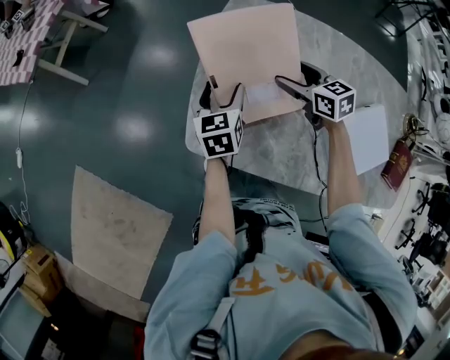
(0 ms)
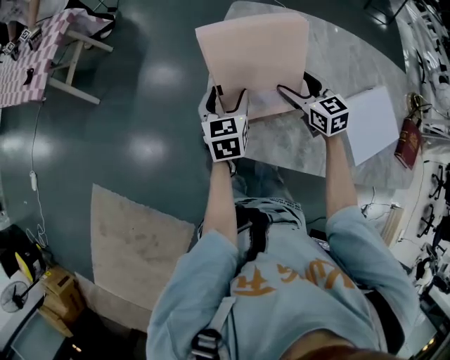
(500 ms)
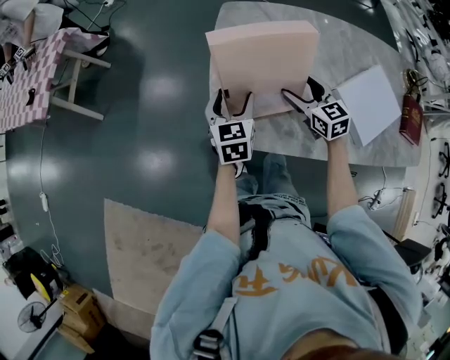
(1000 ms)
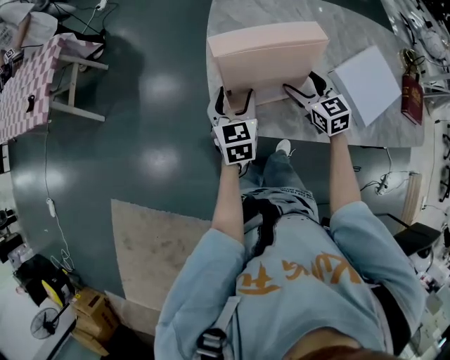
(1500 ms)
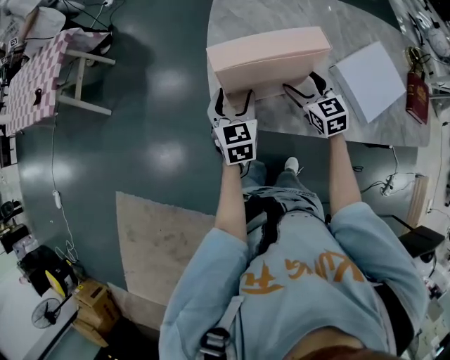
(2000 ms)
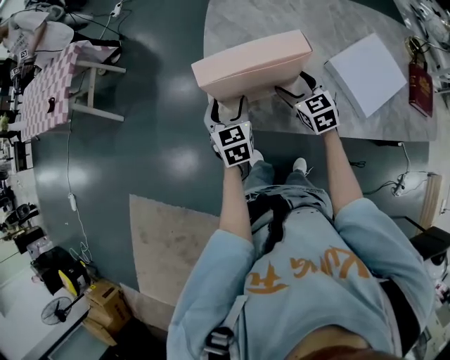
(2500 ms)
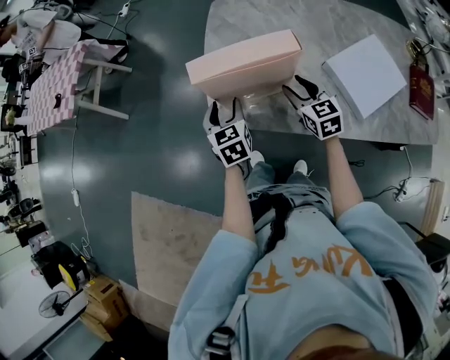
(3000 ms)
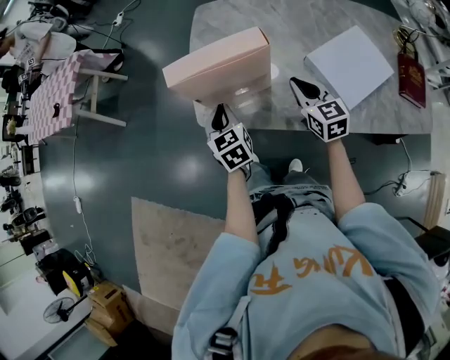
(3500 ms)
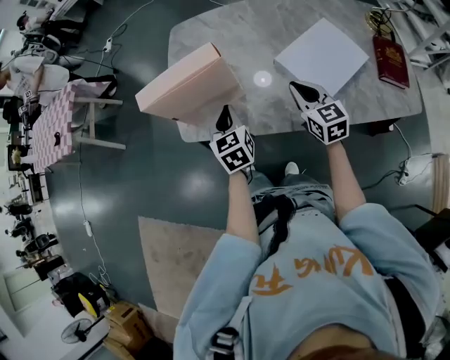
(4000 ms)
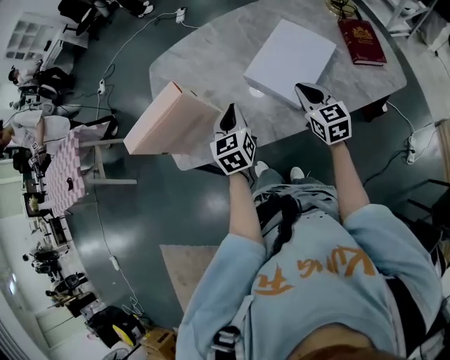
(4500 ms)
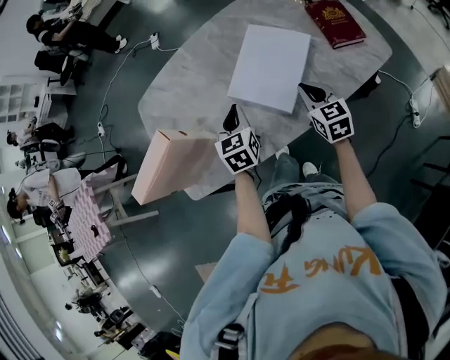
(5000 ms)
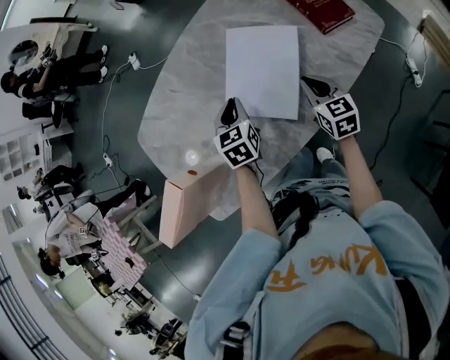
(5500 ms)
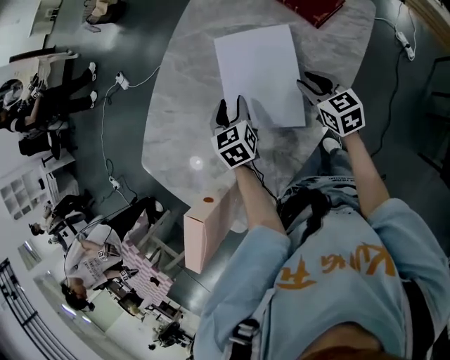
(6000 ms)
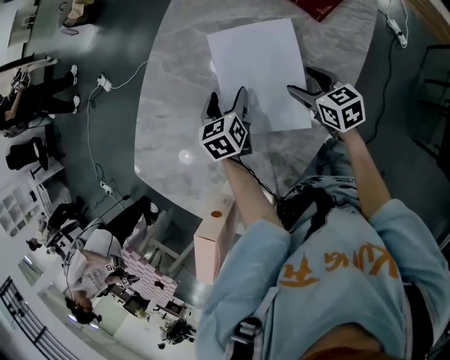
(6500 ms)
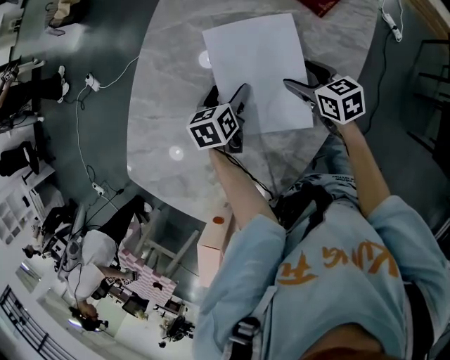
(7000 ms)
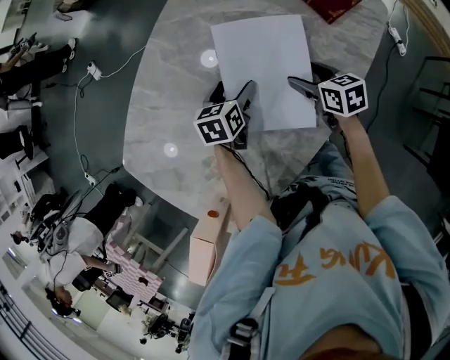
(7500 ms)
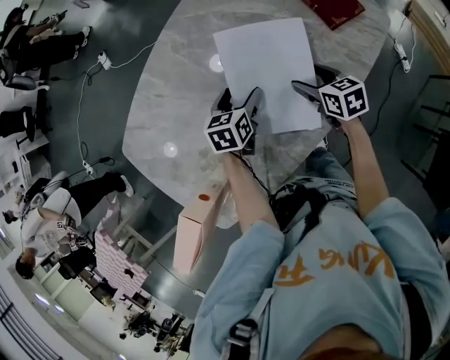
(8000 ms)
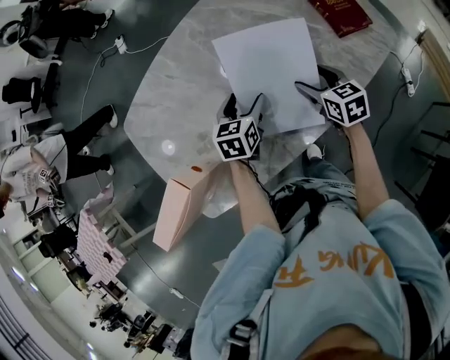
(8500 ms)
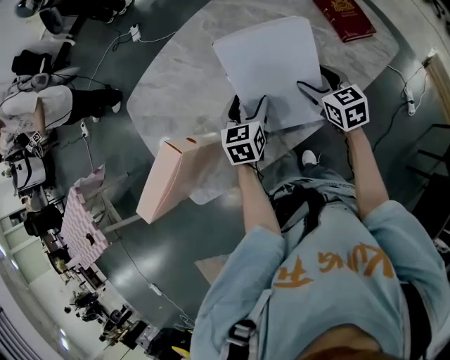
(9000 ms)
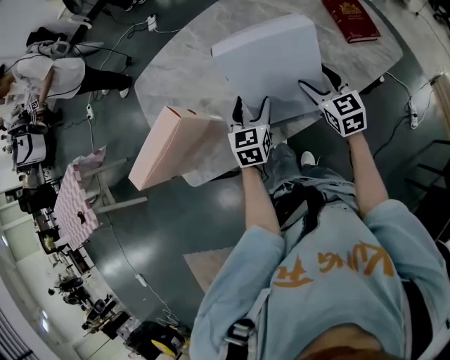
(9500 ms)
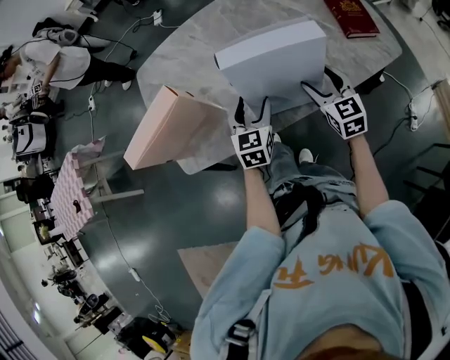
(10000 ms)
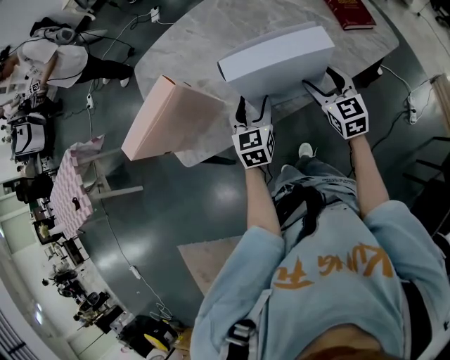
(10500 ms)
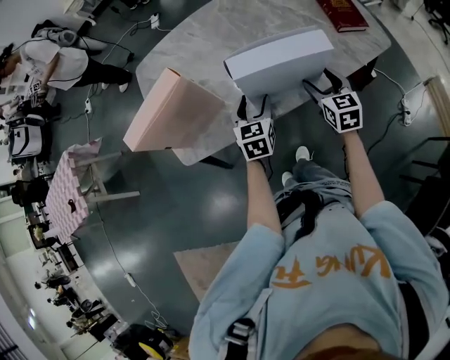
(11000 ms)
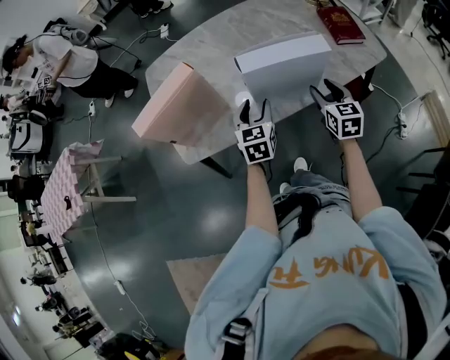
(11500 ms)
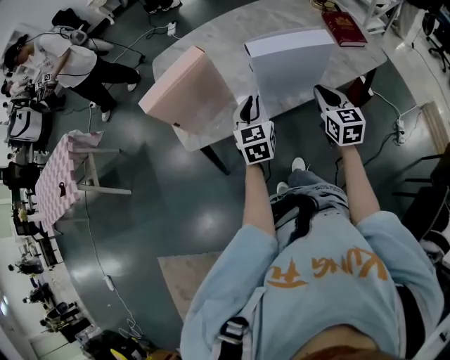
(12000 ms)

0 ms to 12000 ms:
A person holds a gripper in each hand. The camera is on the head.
0 ms to 2000 ms: Both grippers move backward, roughly 15 cm. The left gripper changes its angle by some 20 degrees. The right gripper swivels about 30 degrees.
2000 ms to 4000 ms: The grippers both shift to the right and backward by about 20 cm. The right gripper closes; the left gripper closes its fingers.
4000 ms to 6000 ms: The left gripper ends up approximately 40 cm from where it was, rotates roughly 50 degrees, and opens up; the right gripper moves about 30 cm, and swivels roughly 50 degrees.
6000 ms to 8000 ms: The right gripper opens its fingers. Meanwhile the left gripper opens up.
8000 ms to 10000 ms: The left gripper travels backward by about 20 cm, and swivels approximately 40 degrees. Meanwhile the right gripper moves backward and upward, roughly 15 cm, and swivels roughly 40 degrees.
10000 ms to 12000 ms: The left gripper heads backward and upward, covering some 15 cm, and closes its fingers. The right gripper heads backward, covering some 15 cm, and closes its fingers.

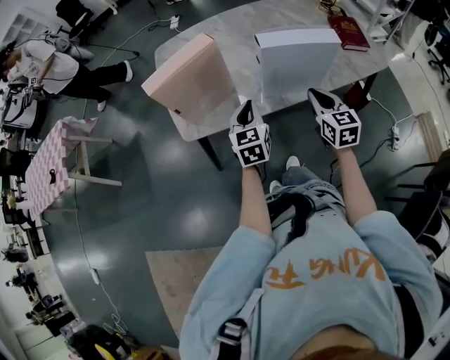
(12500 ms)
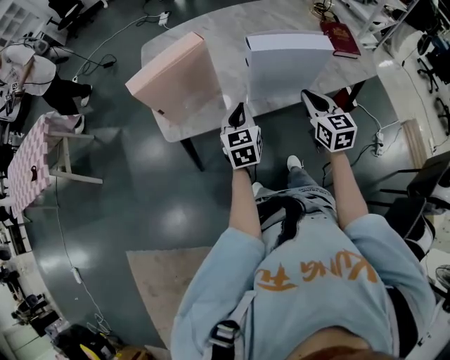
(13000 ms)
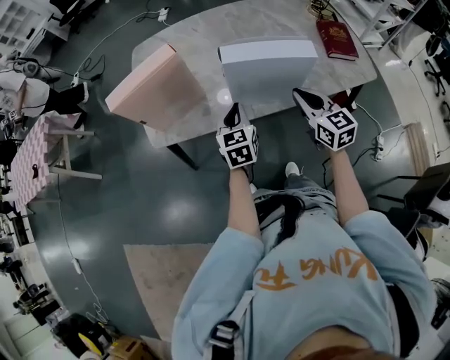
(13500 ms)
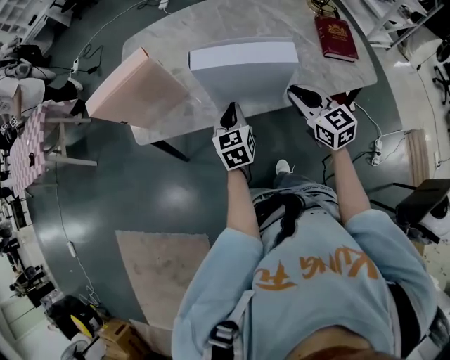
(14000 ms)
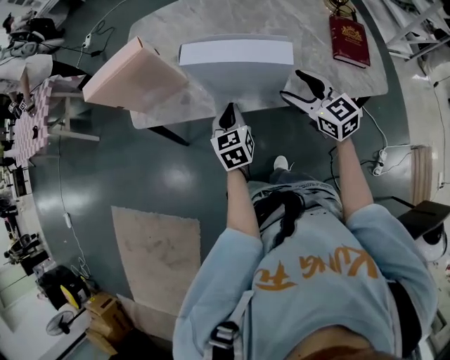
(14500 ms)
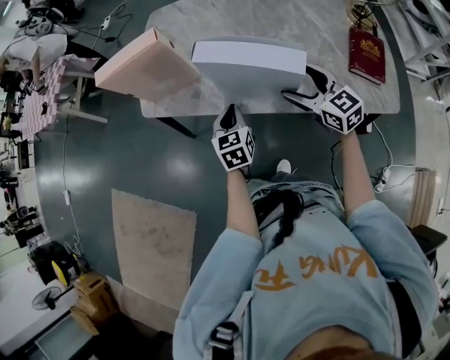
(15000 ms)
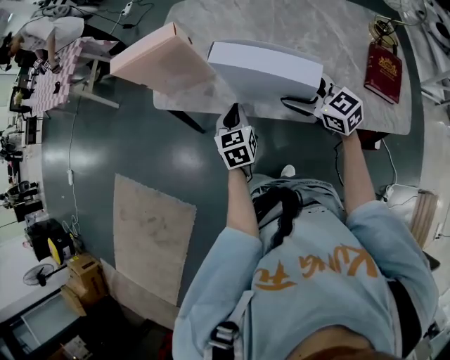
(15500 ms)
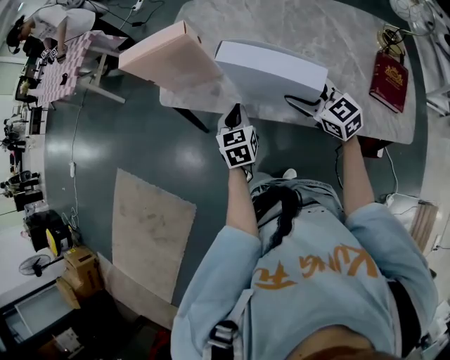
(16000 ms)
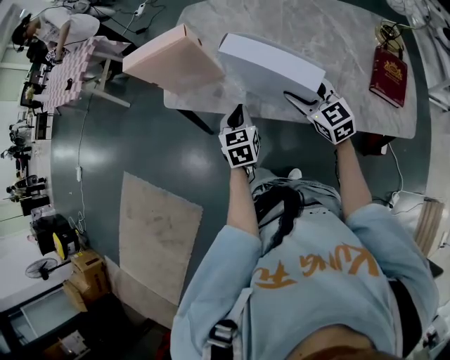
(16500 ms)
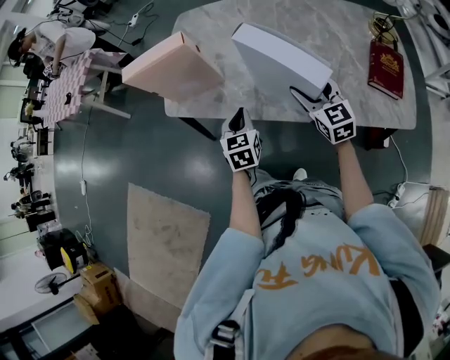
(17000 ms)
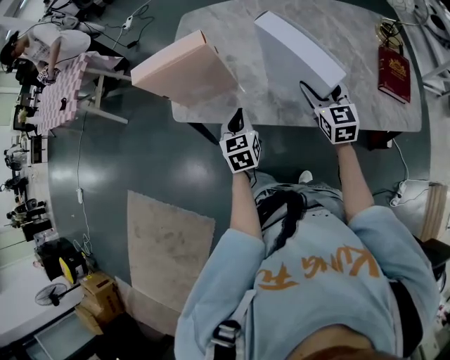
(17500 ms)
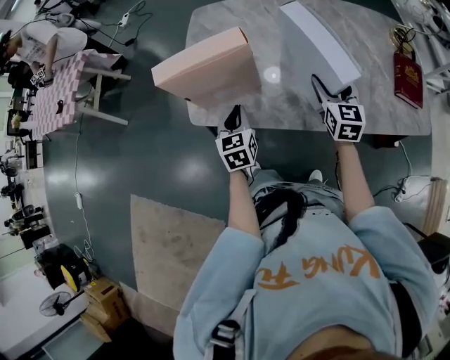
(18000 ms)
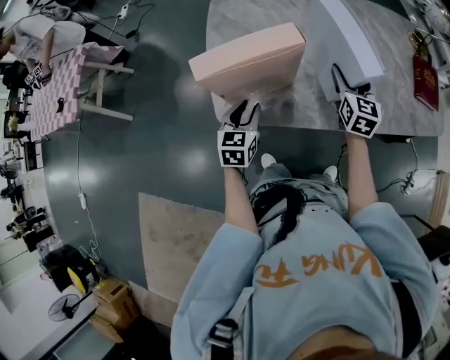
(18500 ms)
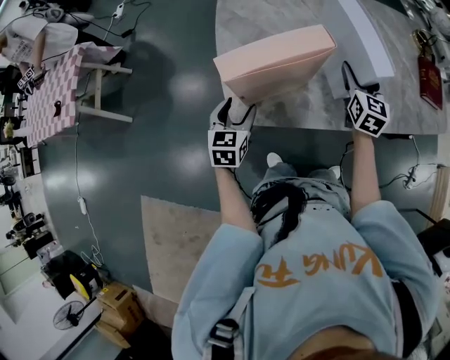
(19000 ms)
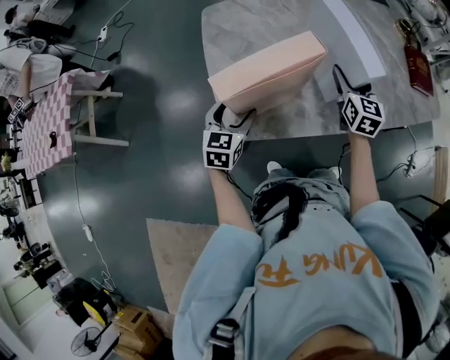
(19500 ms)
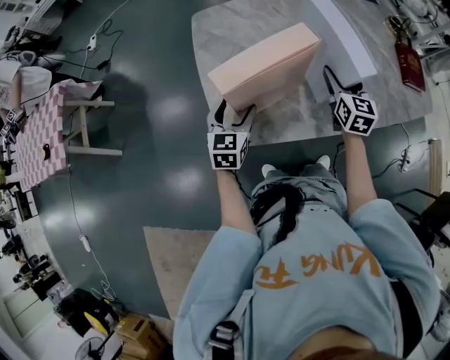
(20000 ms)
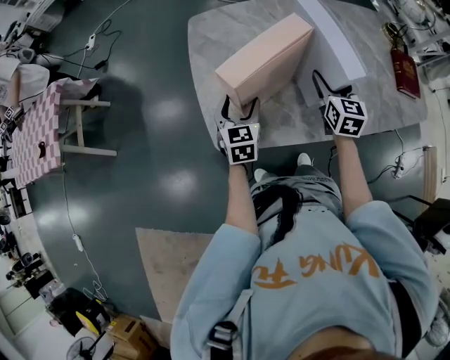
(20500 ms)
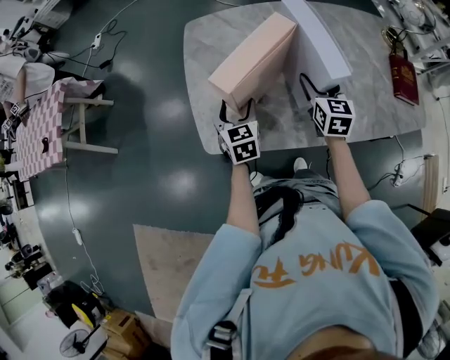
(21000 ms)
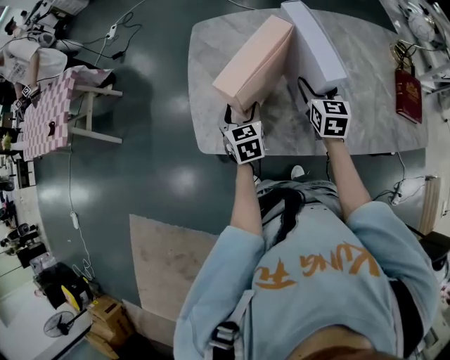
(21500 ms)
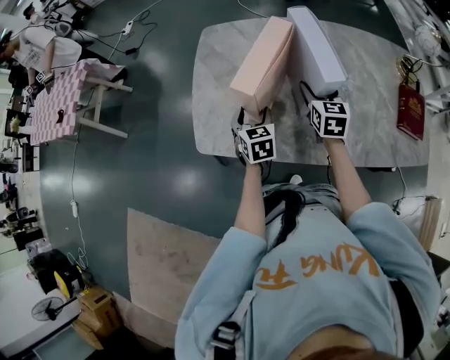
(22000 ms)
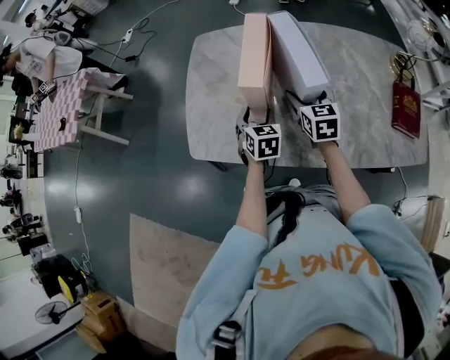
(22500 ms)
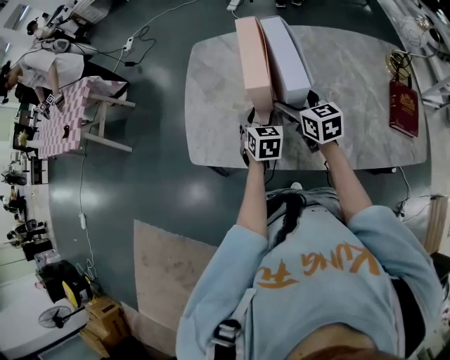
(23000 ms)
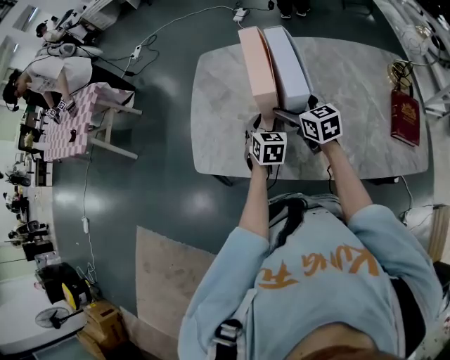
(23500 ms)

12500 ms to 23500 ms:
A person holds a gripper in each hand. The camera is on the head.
12500 ms to 14500 ms: The left gripper changes place by approximately 15 cm, and swivels about 20 degrees, while the right gripper moves roughly 15 cm, rotates roughly 40 degrees, and opens up.
14500 ms to 16000 ms: The right gripper travels forward by roughly 5 cm, and rotates some 20 degrees; the left gripper shifts by roughly 5 cm.
16000 ms to 18000 ms: The right gripper changes place by some 10 cm, and turns by approximately 50 degrees. Meanwhile the left gripper changes place by about 20 cm.
18000 ms to 20000 ms: The left gripper travels to the left and forward by roughly 15 cm, turns by some 30 degrees, and opens its fingers; the right gripper heads to the left, covering some 10 cm.
20000 ms to 21500 ms: The left gripper is displaced to the right by roughly 10 cm, and changes its angle by approximately 30 degrees.
21500 ms to 23500 ms: The left gripper goes roughly 15 cm to the right. The right gripper rotates about 30 degrees.

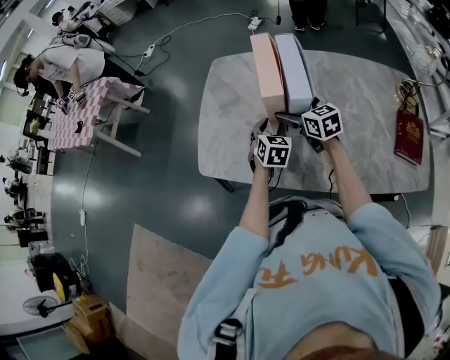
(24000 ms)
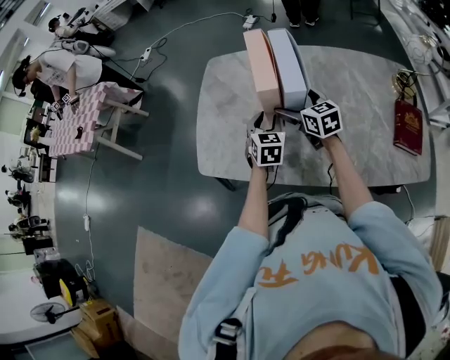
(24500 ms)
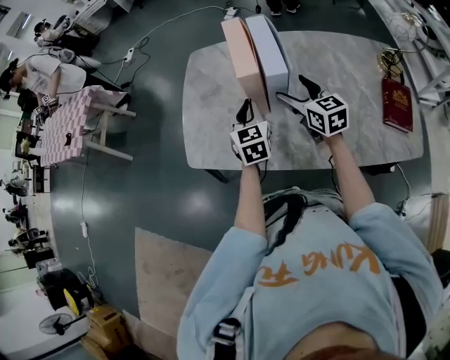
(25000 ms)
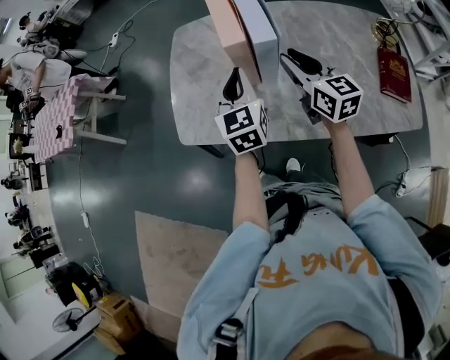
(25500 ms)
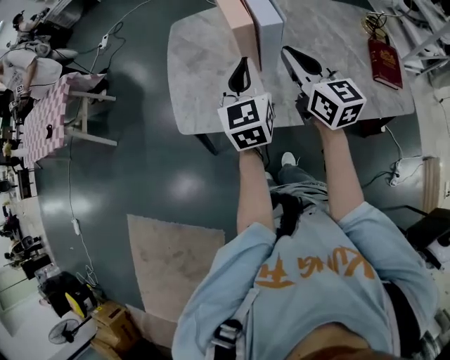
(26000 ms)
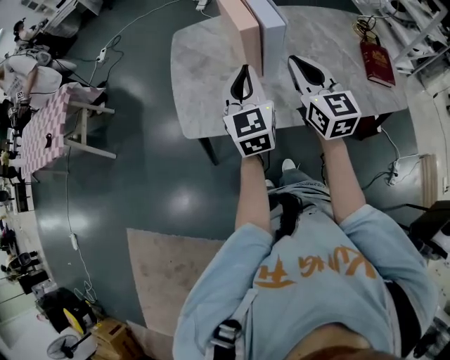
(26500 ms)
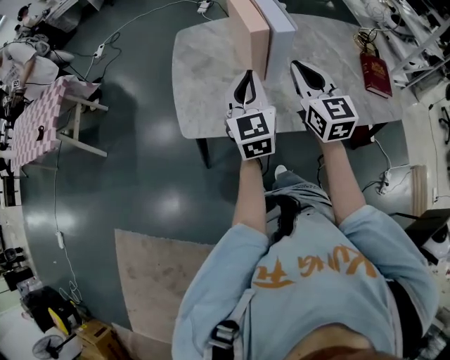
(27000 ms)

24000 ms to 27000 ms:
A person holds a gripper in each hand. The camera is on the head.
24000 ms to 25500 ms: The right gripper moves upward and backward, about 15 cm, rotates about 20 degrees, and closes. Meanwhile the left gripper moves upward, about 15 cm, changes its angle by approximately 30 degrees, and closes.
25500 ms to 27000 ms: Both grippers travel together backward and to the left, approximately 10 cm. The right gripper swivels about 20 degrees.
